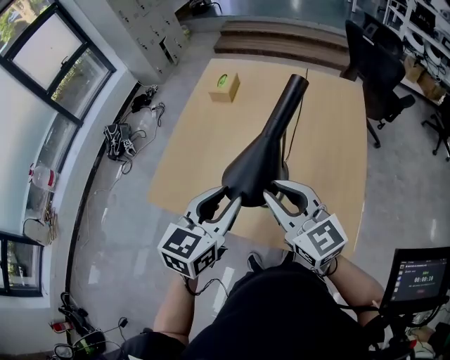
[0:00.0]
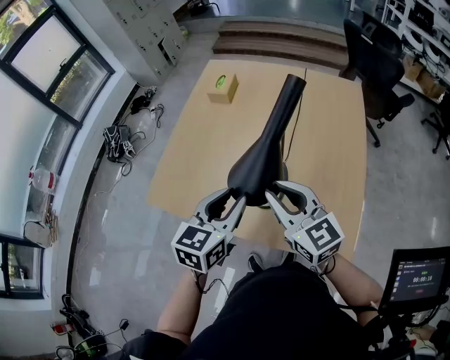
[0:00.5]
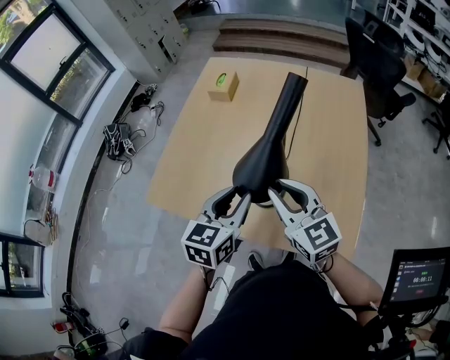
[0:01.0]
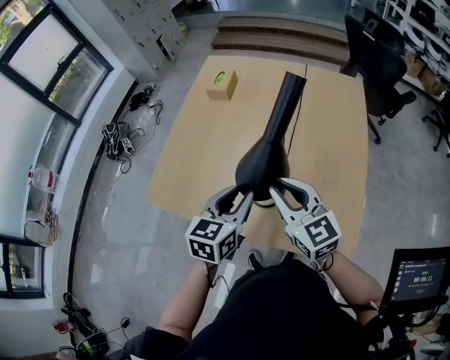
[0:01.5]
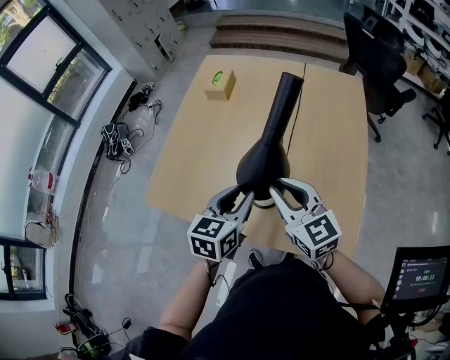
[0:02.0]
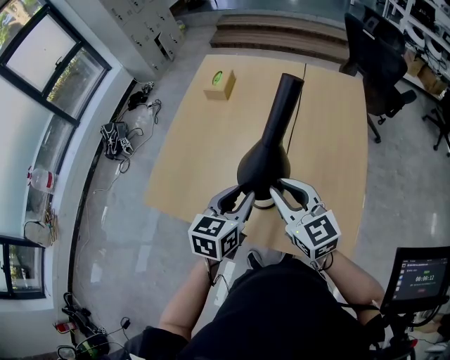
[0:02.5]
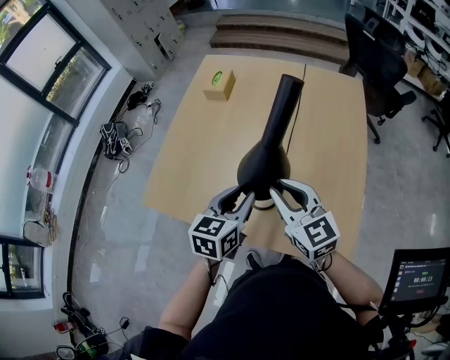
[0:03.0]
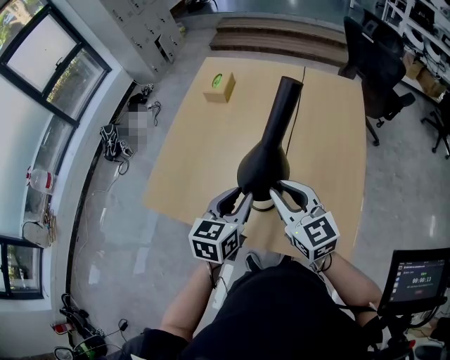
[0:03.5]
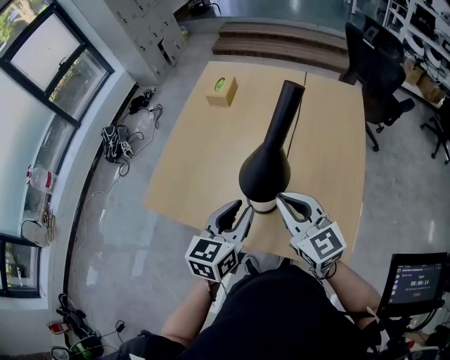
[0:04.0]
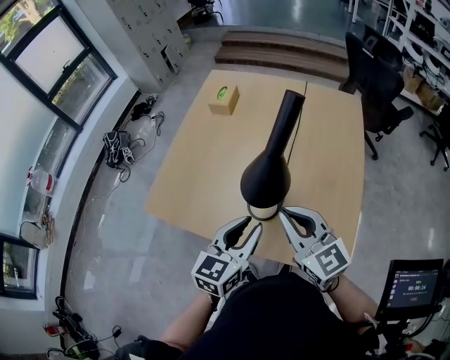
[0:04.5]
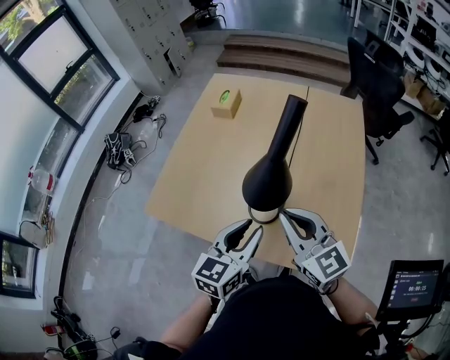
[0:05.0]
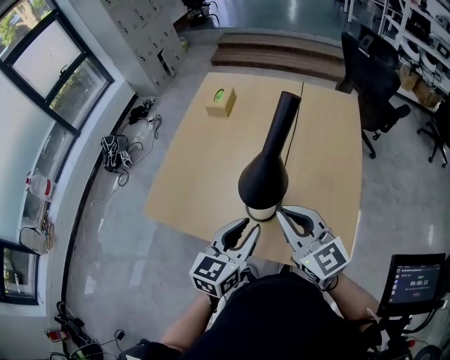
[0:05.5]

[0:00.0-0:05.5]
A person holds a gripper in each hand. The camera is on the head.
0:00.0 to 0:02.0: The left gripper shifts some 10 cm downward, while the right gripper travels downward by approximately 5 cm.
0:02.0 to 0:03.5: The two grippers keep their place.
0:03.5 to 0:05.5: The right gripper moves roughly 5 cm. Meanwhile the left gripper moves backward, approximately 5 cm.

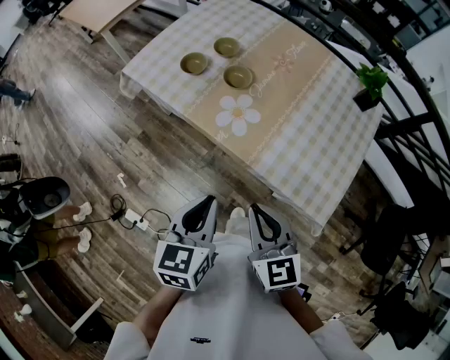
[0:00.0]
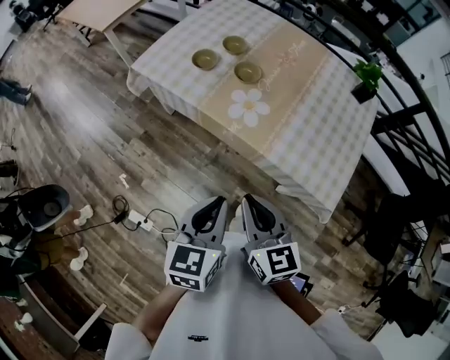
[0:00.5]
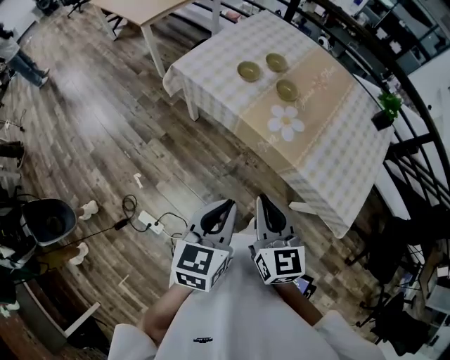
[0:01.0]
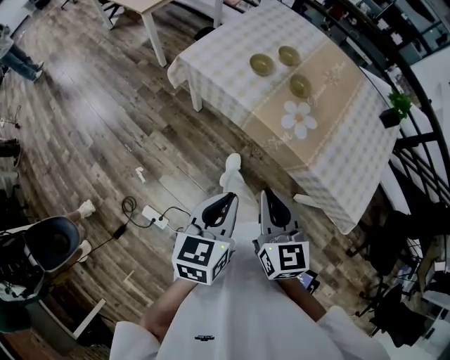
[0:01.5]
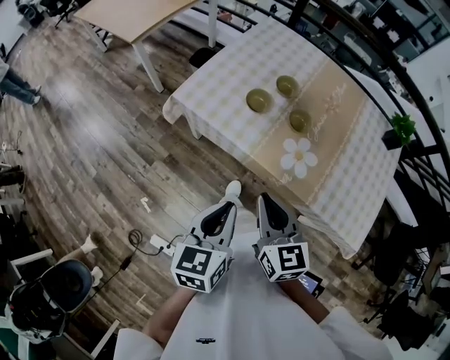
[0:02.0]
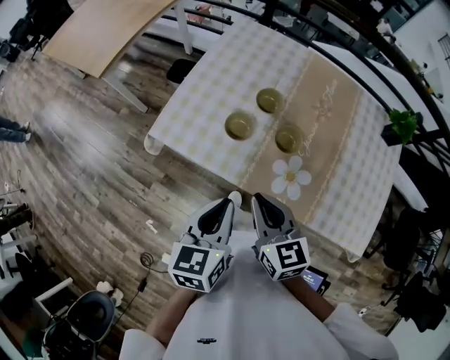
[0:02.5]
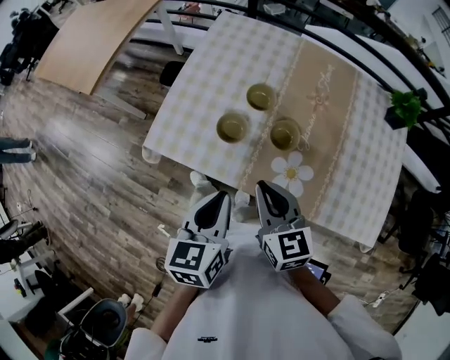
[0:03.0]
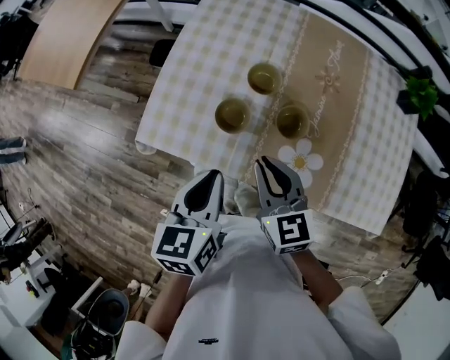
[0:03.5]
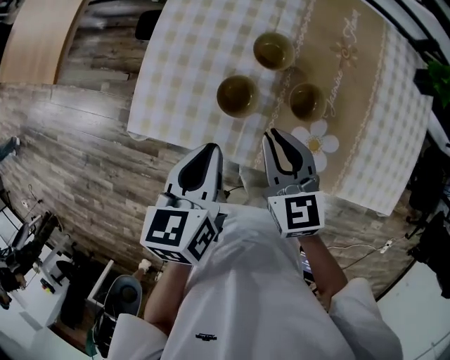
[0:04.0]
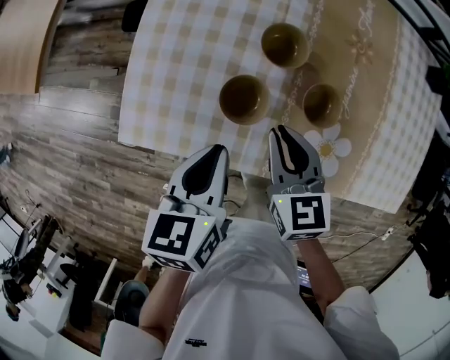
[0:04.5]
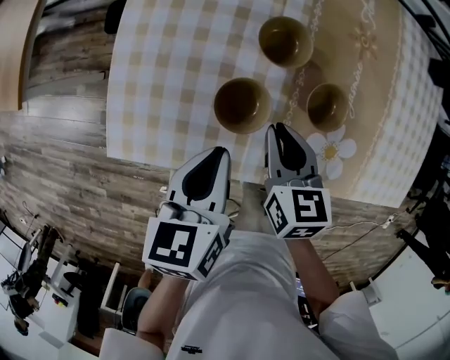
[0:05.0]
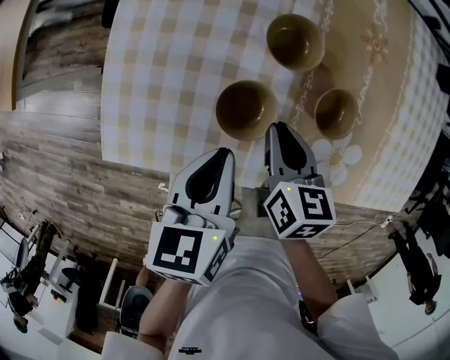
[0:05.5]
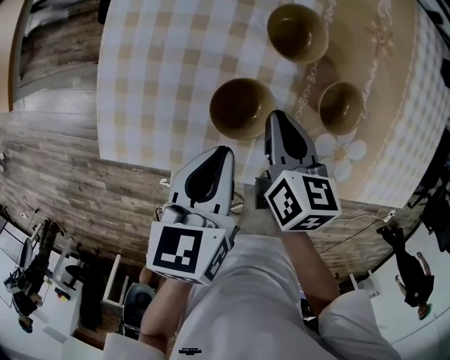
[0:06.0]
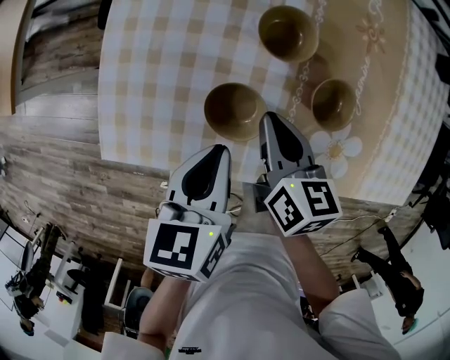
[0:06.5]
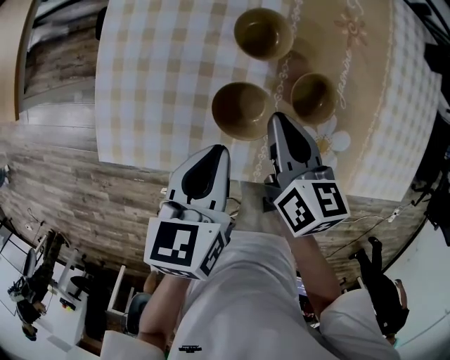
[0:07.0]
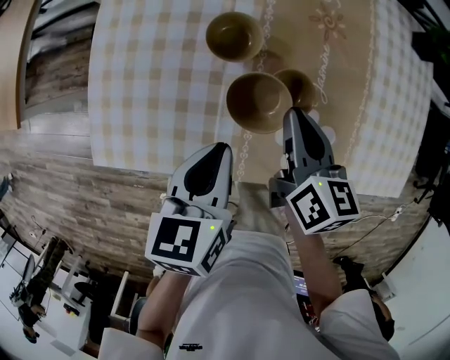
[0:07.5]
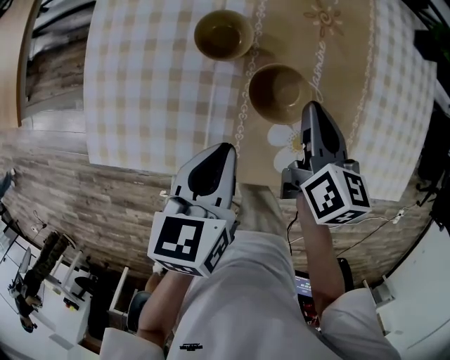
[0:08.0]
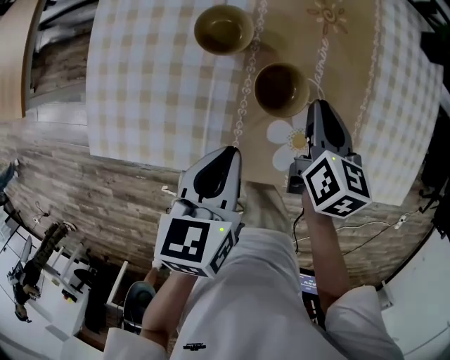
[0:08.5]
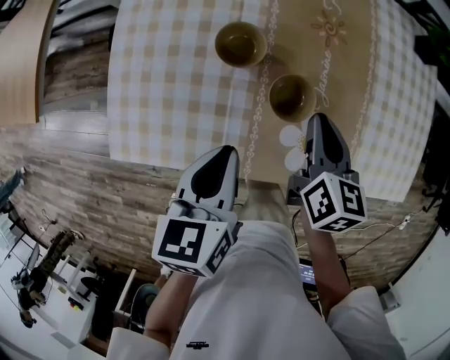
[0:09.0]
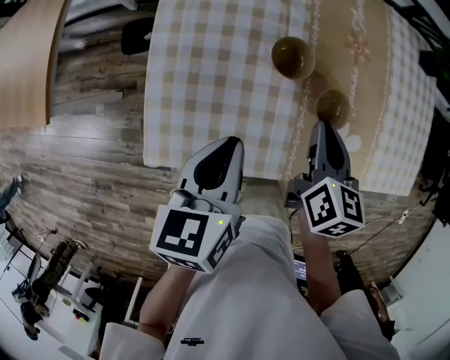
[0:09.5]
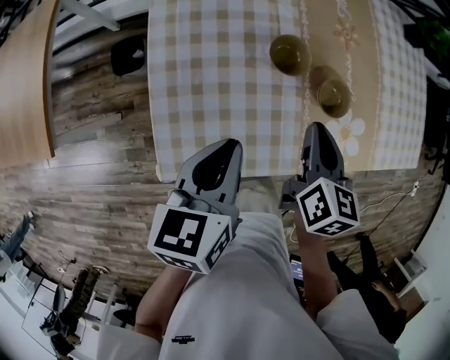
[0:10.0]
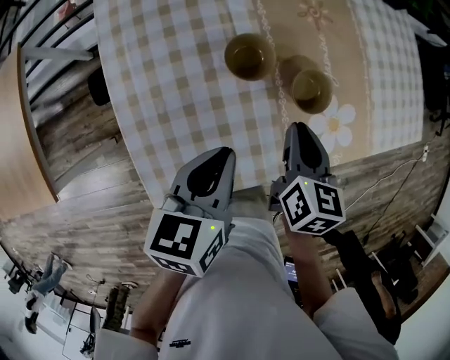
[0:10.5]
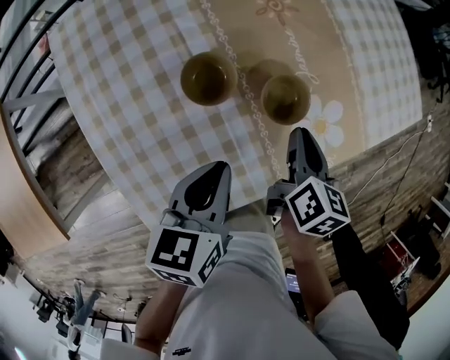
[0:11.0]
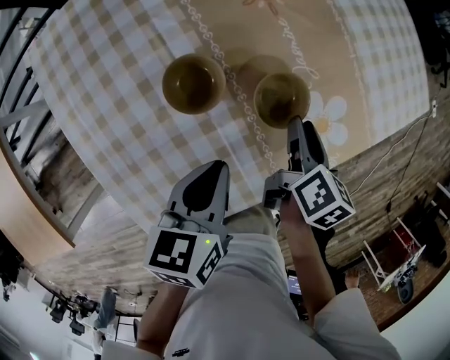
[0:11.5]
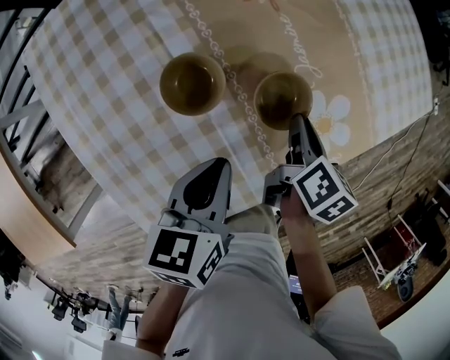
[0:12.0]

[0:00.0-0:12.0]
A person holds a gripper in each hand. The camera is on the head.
0:00.0 to 0:02.0: The left gripper is displaced to the left by some 25 cm; the right gripper shifts roughly 30 cm to the left and forward.
0:02.0 to 0:04.0: Both grippers travel together forward, some 35 cm.
0:04.0 to 0:06.0: The grippers both shift downward by about 15 cm. The right gripper turns by roughly 40 degrees.
0:06.0 to 0:08.0: The left gripper heads to the right, covering approximately 10 cm; the right gripper is displaced to the right and upward by some 20 cm.
0:08.0 to 0:10.0: The left gripper shifts roughly 20 cm to the left, while the right gripper goes about 20 cm to the left and backward.
0:10.0 to 0:12.0: The right gripper ends up approximately 25 cm from where it was, and swivels about 40 degrees, while the left gripper moves approximately 20 cm, and turns by some 30 degrees.

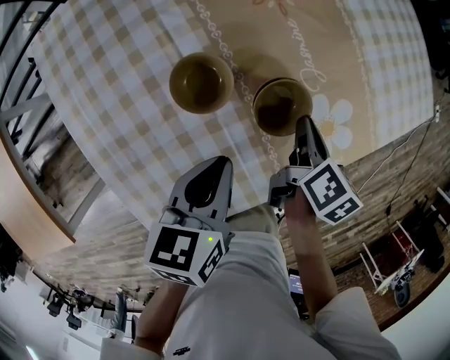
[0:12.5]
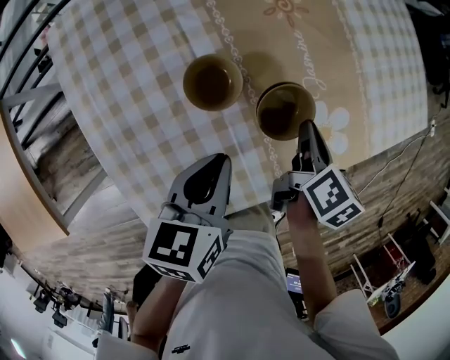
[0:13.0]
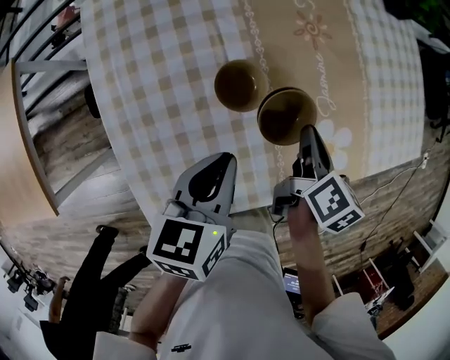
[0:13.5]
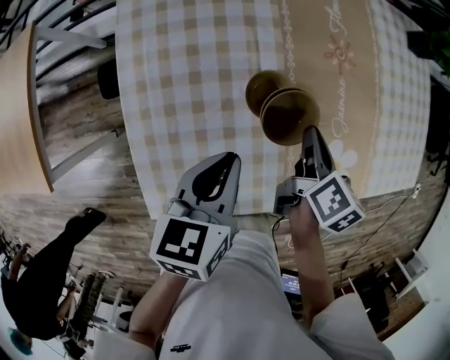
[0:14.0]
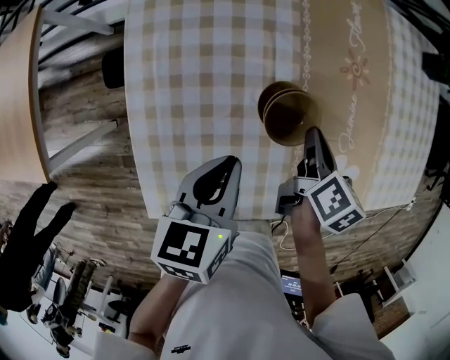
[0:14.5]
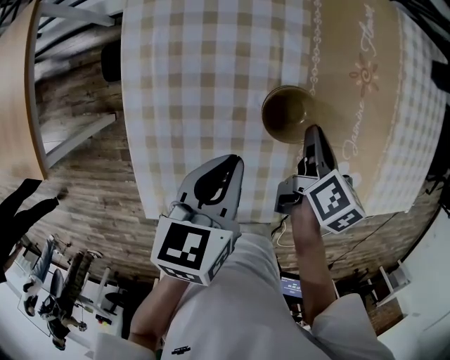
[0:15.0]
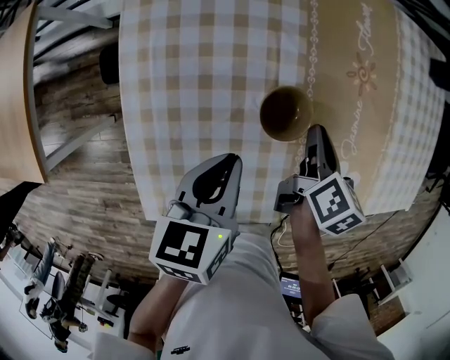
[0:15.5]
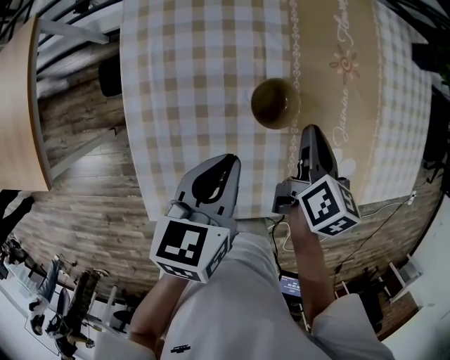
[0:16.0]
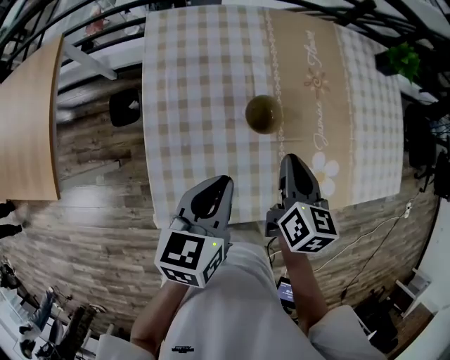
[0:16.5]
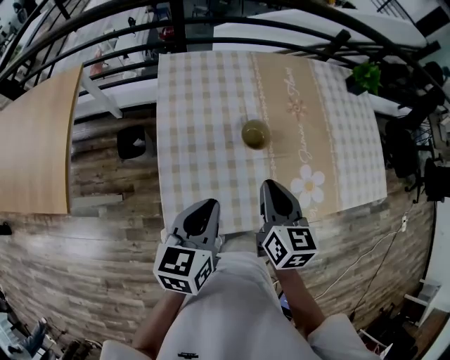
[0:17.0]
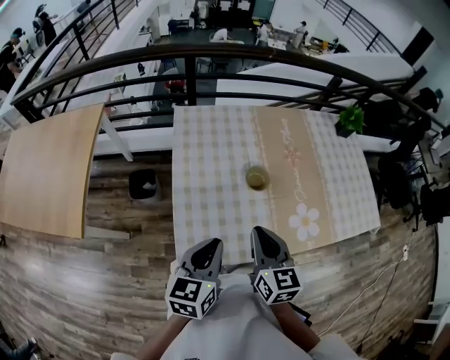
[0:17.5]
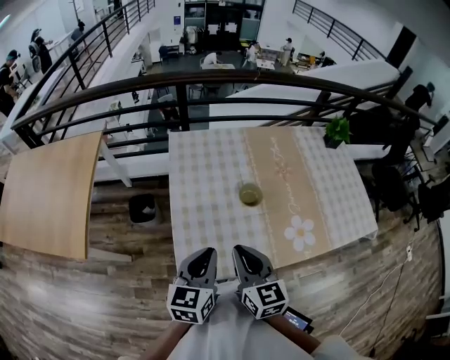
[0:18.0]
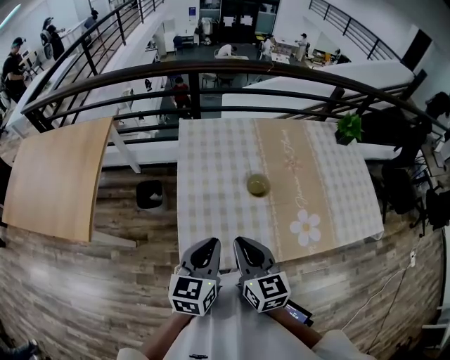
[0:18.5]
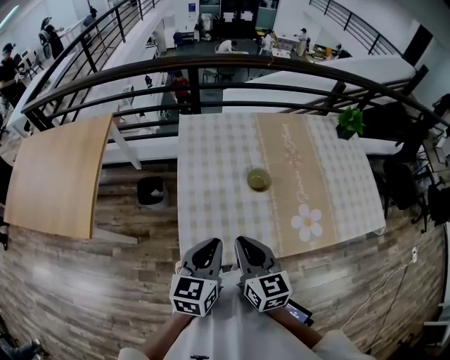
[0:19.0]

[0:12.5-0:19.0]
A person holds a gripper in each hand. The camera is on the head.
0:12.5 to 0:14.5: The left gripper changes place by about 10 cm, and rotates some 20 degrees, while the right gripper ends up some 15 cm from where it was, and changes its angle by approximately 30 degrees.
0:14.5 to 0:17.0: The left gripper heads backward and upward, covering some 20 cm. Meanwhile the right gripper heads upward and backward, covering roughly 30 cm, and swivels some 30 degrees.
0:17.0 to 0:19.0: The right gripper moves backward, to the left and upward, some 15 cm, while the left gripper is displaced backward and upward by about 10 cm.

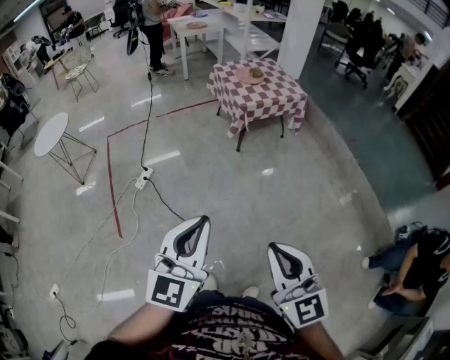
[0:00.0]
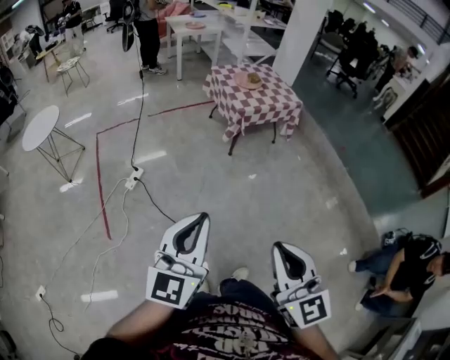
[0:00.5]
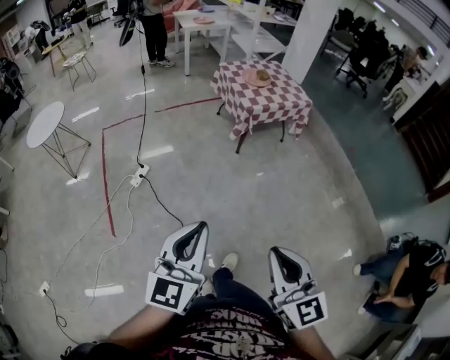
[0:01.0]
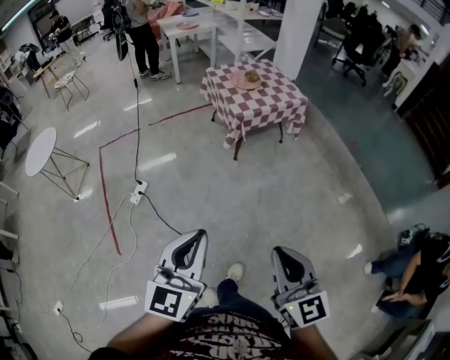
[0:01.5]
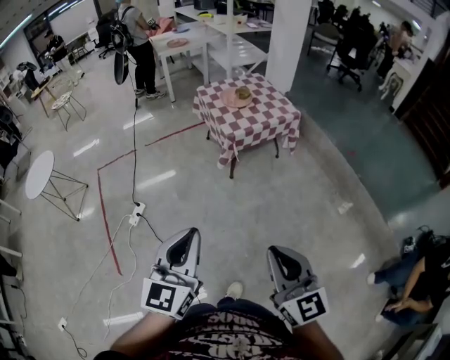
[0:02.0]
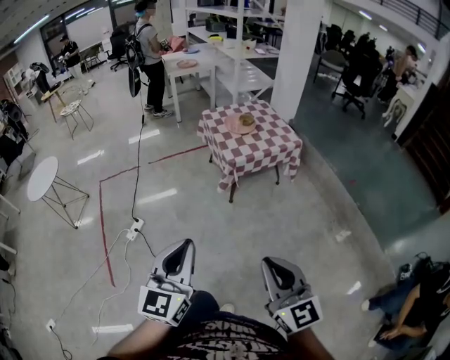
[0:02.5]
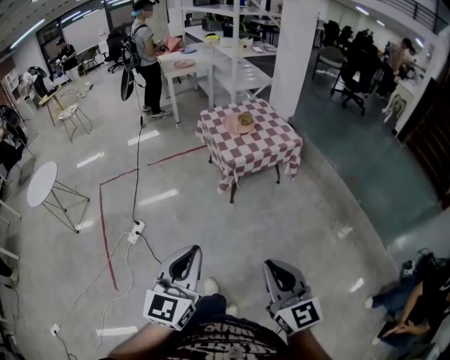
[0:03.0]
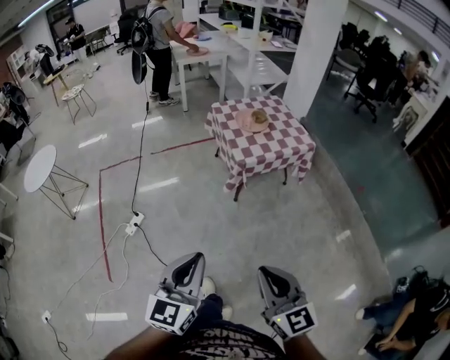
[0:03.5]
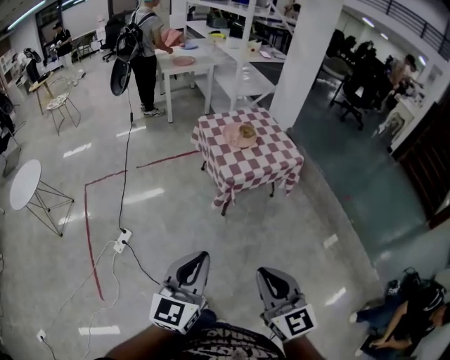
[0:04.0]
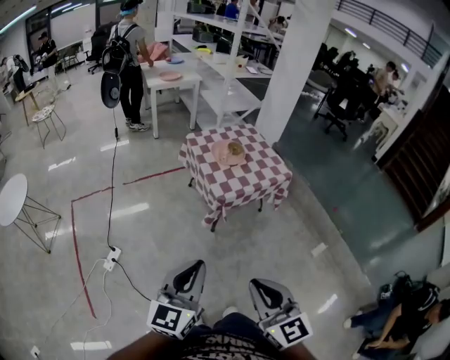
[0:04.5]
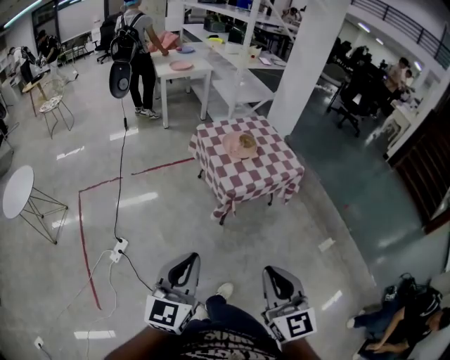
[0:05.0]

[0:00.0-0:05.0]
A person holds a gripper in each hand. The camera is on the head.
0:00.0 to 0:02.5: Both grippers move forward, roughly 25 cm.
0:02.5 to 0:05.0: The two grippers go approximately 20 cm forward.
